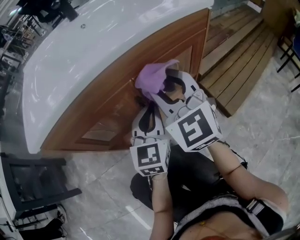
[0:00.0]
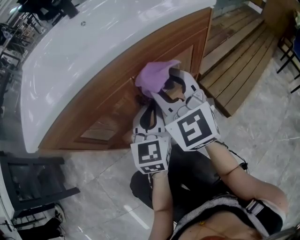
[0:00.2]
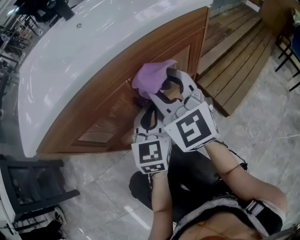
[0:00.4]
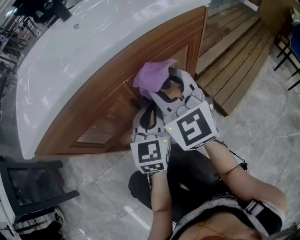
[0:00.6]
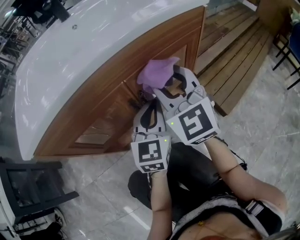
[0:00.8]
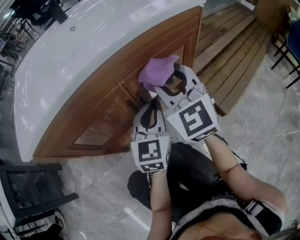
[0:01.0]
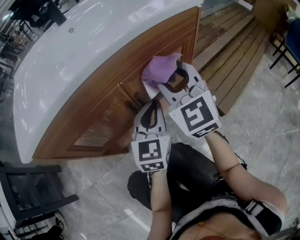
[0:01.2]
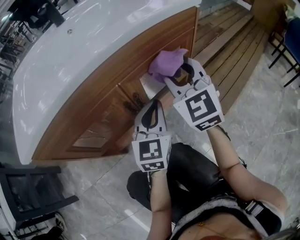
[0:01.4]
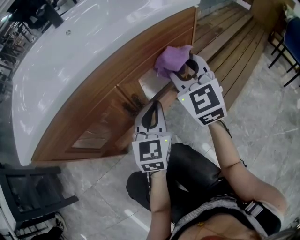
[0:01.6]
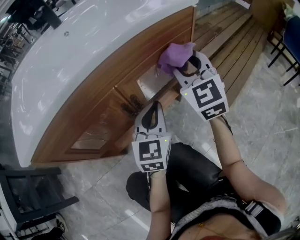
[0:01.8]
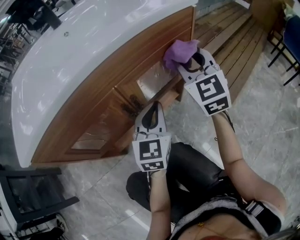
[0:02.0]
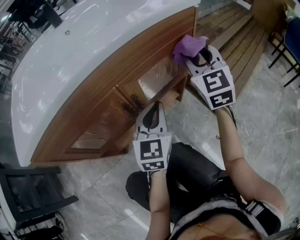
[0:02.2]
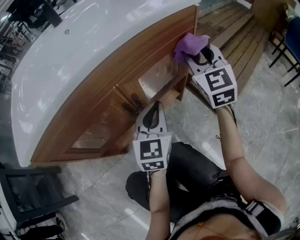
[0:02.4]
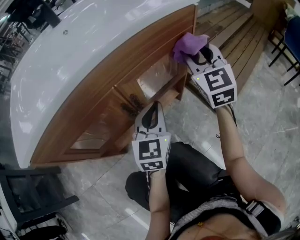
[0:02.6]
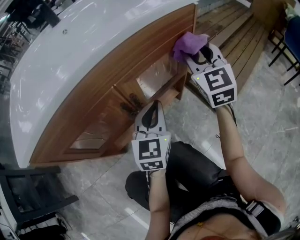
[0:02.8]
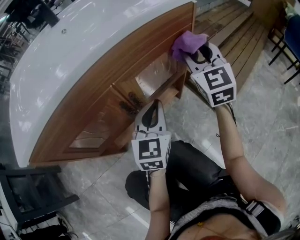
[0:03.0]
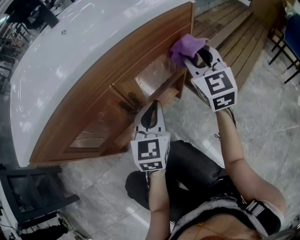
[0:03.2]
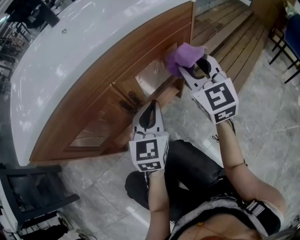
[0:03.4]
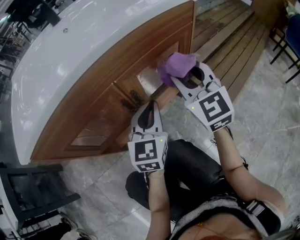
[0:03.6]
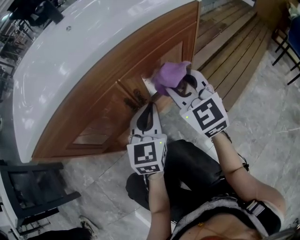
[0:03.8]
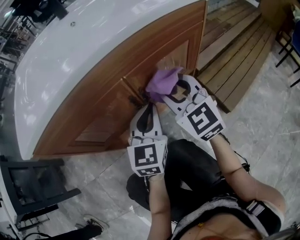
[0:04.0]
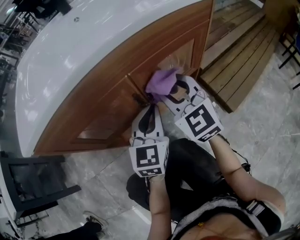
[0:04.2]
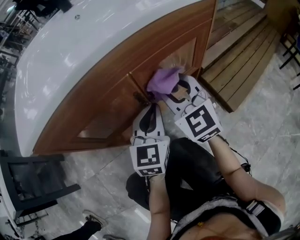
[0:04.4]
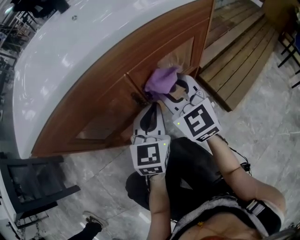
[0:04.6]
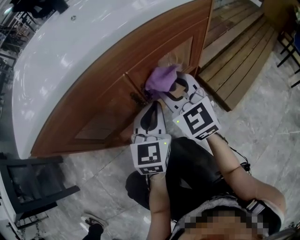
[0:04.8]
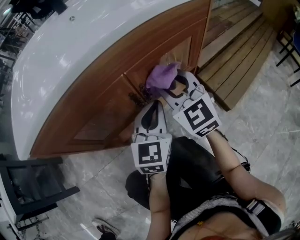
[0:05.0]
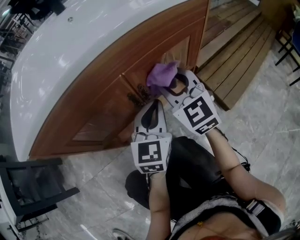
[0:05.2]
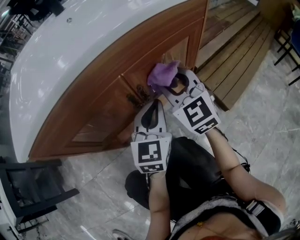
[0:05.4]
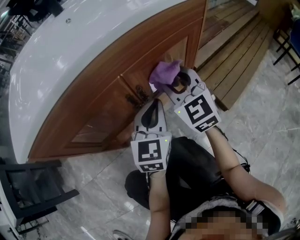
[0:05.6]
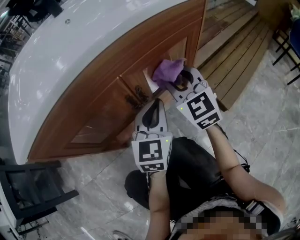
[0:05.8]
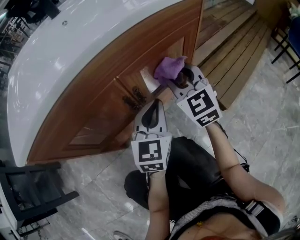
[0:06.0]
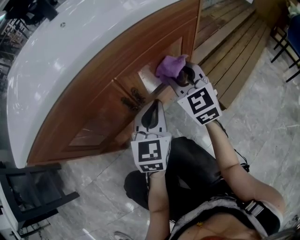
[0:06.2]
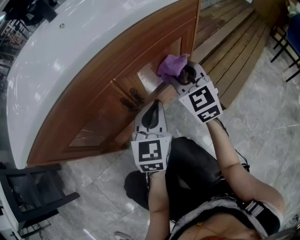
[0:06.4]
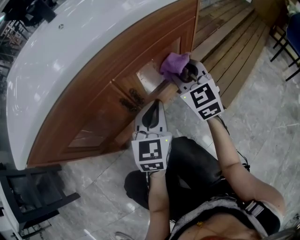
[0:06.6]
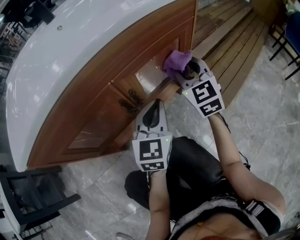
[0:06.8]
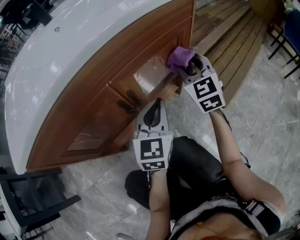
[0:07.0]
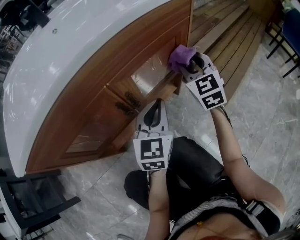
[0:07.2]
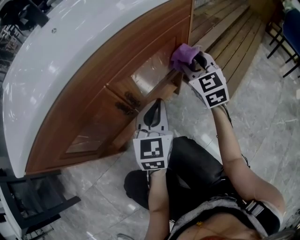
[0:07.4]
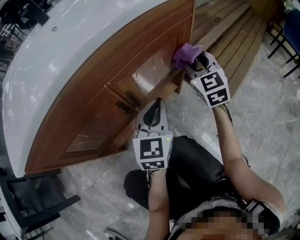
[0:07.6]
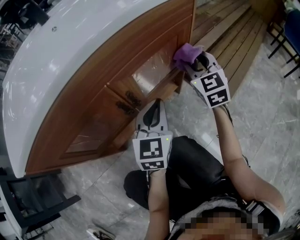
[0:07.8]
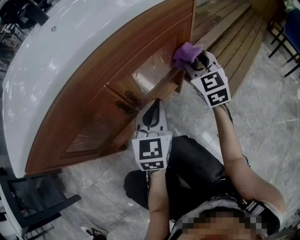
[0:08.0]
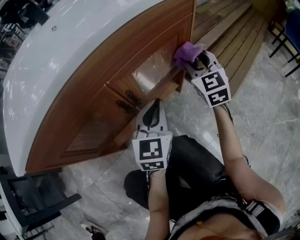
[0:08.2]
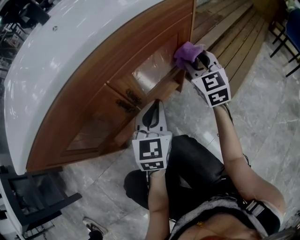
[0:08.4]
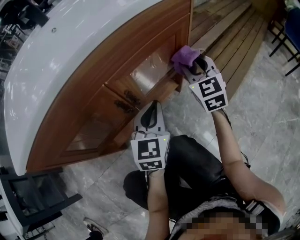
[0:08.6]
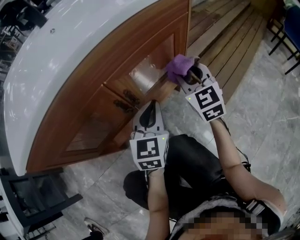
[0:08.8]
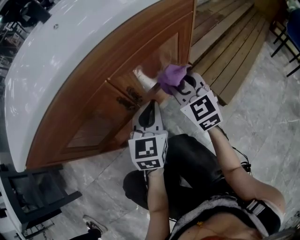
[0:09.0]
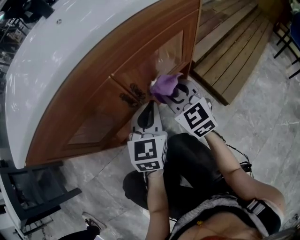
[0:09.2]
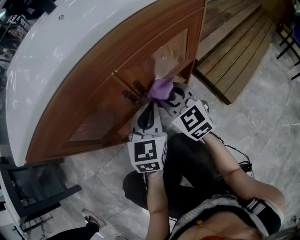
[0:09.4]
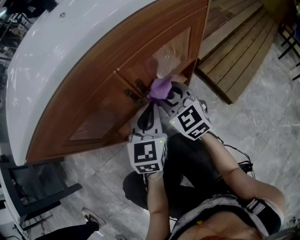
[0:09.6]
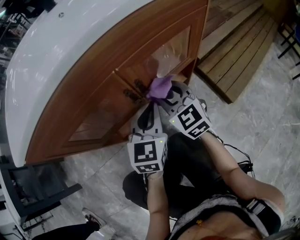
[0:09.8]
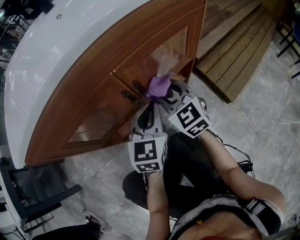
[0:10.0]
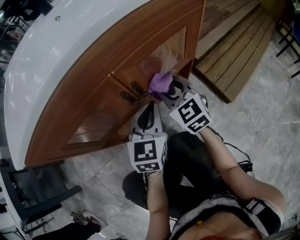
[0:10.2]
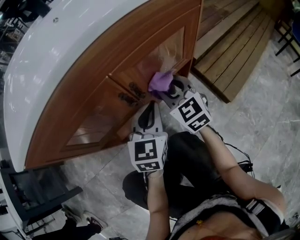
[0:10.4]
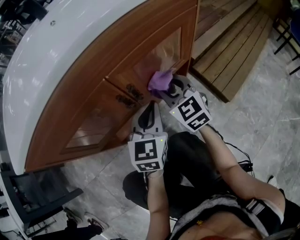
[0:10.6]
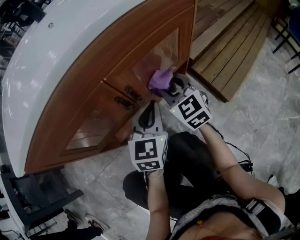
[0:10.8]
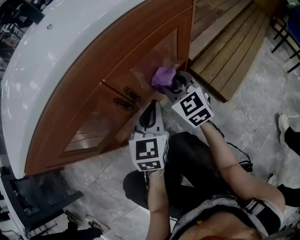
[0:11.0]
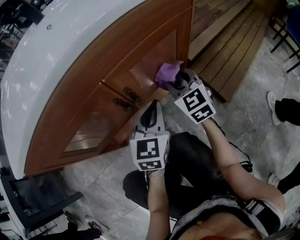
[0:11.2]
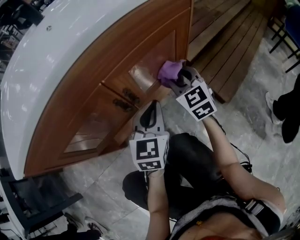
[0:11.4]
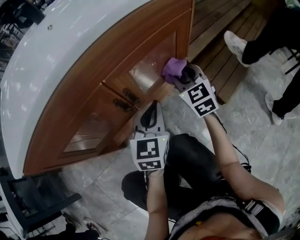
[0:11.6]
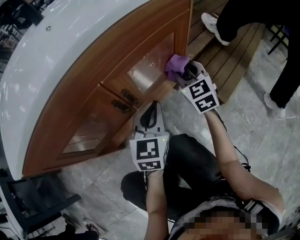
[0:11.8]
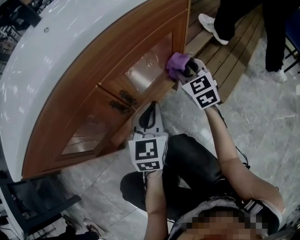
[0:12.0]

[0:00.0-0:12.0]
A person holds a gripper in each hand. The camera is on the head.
0:00.0 to 0:01.6: The left gripper travels to the right by approximately 5 cm; the right gripper heads to the right and forward, covering some 10 cm.
0:01.6 to 0:03.0: The right gripper moves to the right, approximately 5 cm.
0:03.0 to 0:04.4: The right gripper shifts about 20 cm to the left and backward, and swivels some 20 degrees; the left gripper shifts roughly 5 cm to the left.
0:04.4 to 0:06.0: The right gripper is displaced to the right by approximately 5 cm.
0:06.0 to 0:07.6: The right gripper travels to the right and forward by about 10 cm.
0:07.6 to 0:09.0: The right gripper moves backward and to the left, some 10 cm.
0:09.0 to 0:10.4: The right gripper travels to the left by roughly 5 cm.
0:10.4 to 0:12.0: The right gripper shifts about 15 cm to the right and forward.

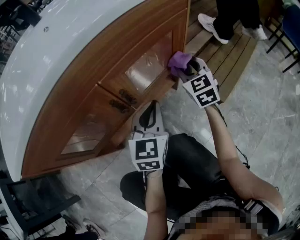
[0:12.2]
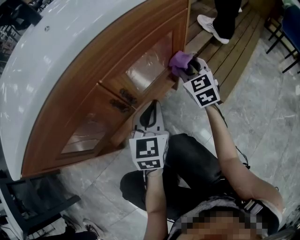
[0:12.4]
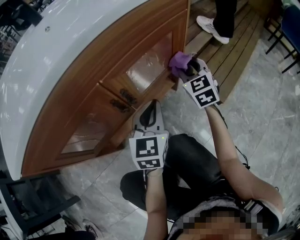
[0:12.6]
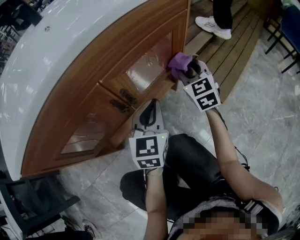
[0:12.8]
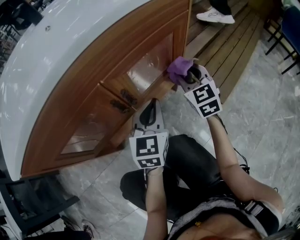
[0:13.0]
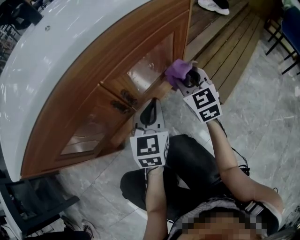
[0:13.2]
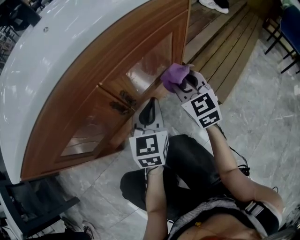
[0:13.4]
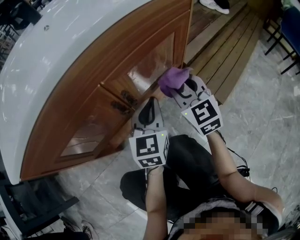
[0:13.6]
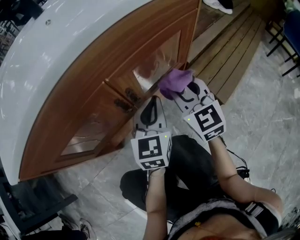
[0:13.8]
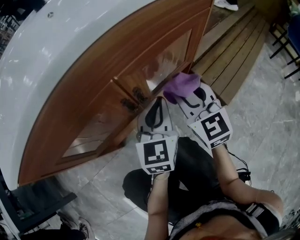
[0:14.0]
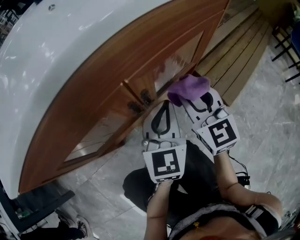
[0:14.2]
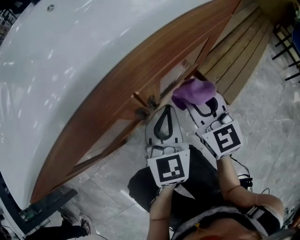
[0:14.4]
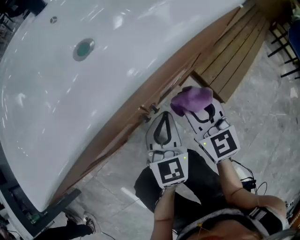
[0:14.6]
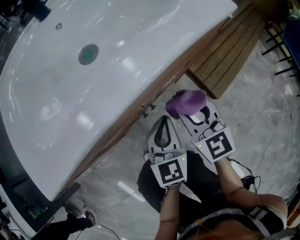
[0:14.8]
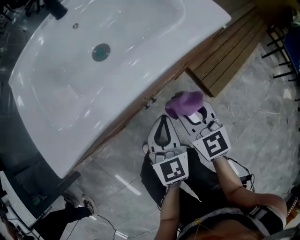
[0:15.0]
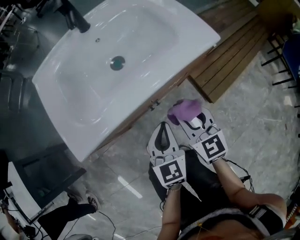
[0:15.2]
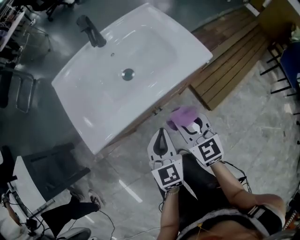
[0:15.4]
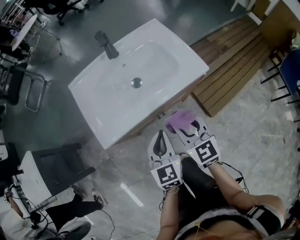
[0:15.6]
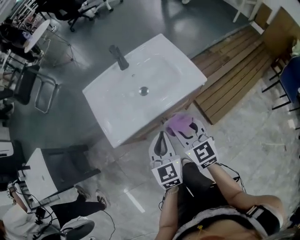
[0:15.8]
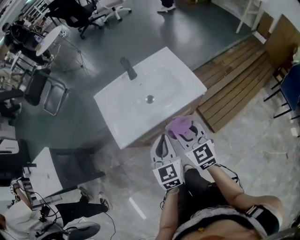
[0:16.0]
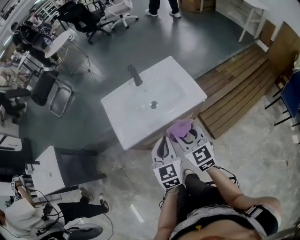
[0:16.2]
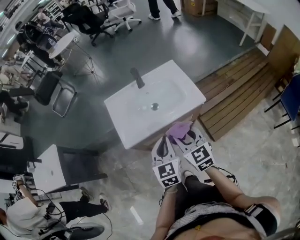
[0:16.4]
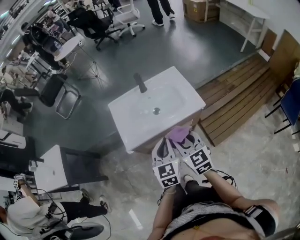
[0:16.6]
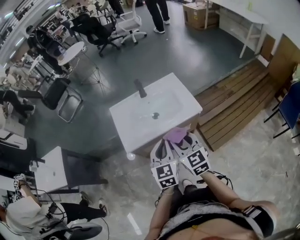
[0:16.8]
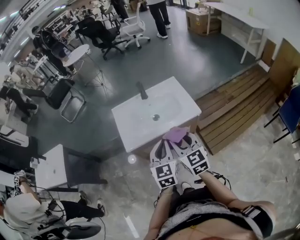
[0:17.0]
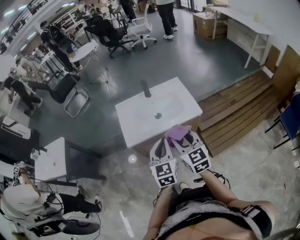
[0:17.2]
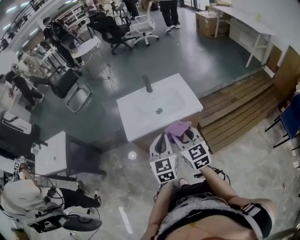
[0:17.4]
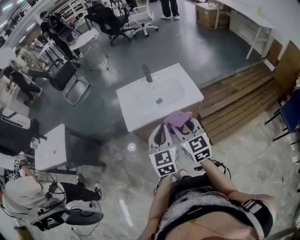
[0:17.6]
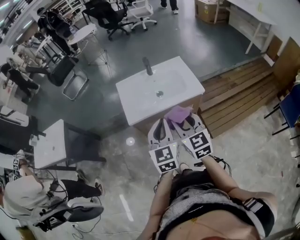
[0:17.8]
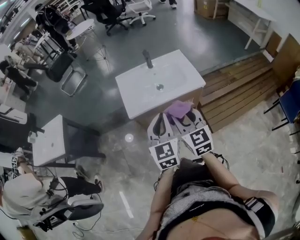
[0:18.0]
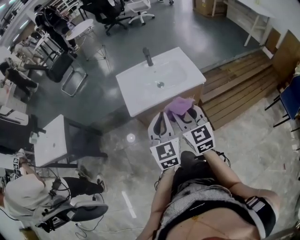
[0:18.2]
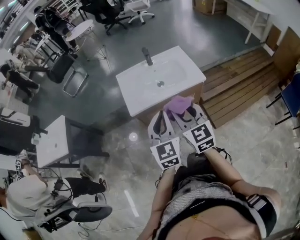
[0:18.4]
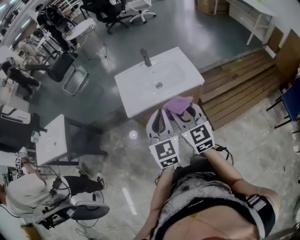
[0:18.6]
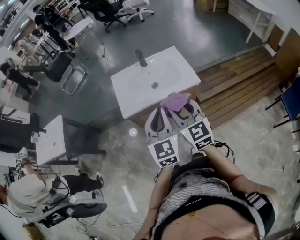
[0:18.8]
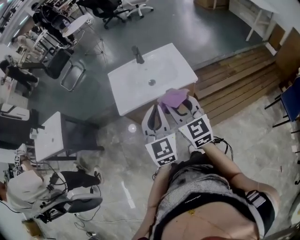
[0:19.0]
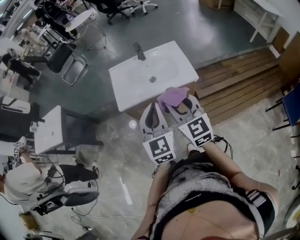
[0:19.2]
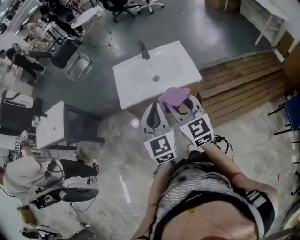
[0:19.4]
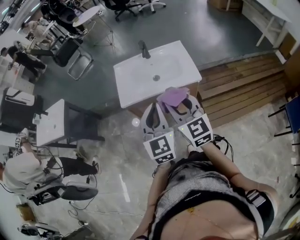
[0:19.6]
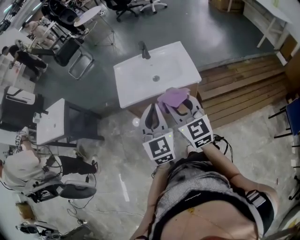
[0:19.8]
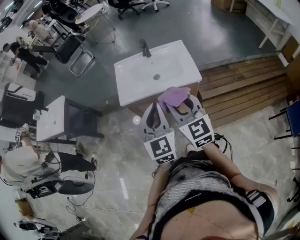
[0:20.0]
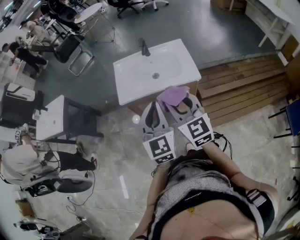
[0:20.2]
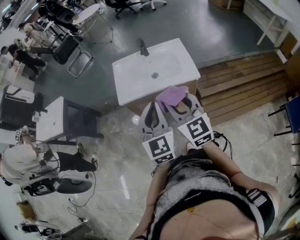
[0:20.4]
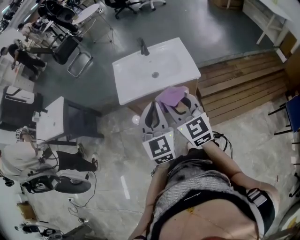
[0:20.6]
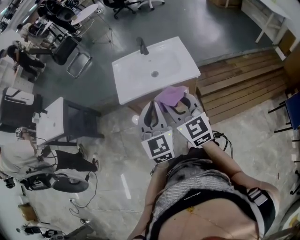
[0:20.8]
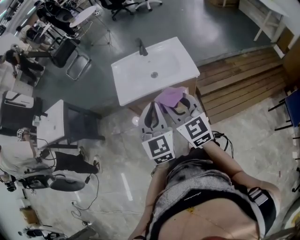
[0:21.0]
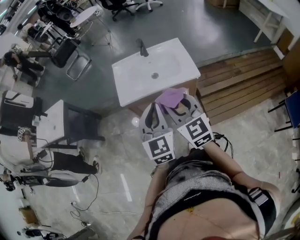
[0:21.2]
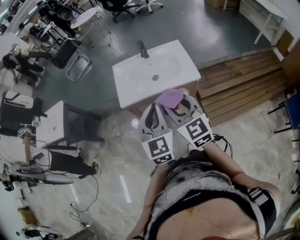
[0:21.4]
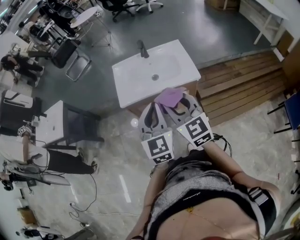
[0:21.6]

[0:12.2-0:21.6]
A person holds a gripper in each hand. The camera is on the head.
0:12.2 to 0:13.8: The right gripper heads backward and to the left, covering some 10 cm.
0:13.8 to 0:15.4: The two grippers go about 25 cm upward. The left gripper turns by roughly 20 degrees.
0:15.4 to 0:17.0: The grippers both shift upward by approximately 30 cm.
0:17.0 to 0:18.4: Both grippers move backward and to the left, some 10 cm.
0:18.4 to 0:20.0: The two grippers go some 10 cm to the right.
0:20.0 to 0:21.6: The grippers move only a little.

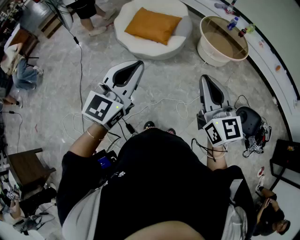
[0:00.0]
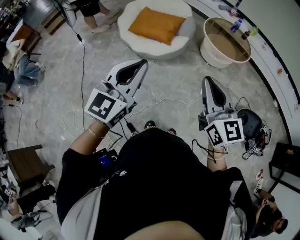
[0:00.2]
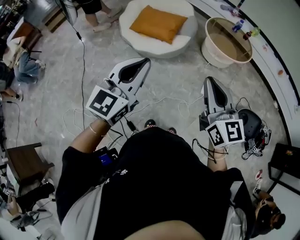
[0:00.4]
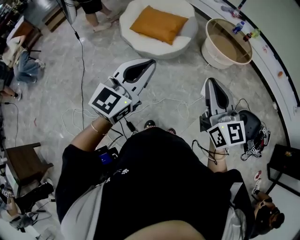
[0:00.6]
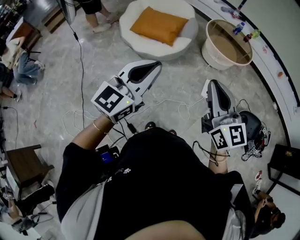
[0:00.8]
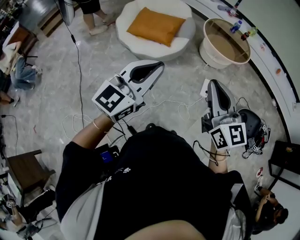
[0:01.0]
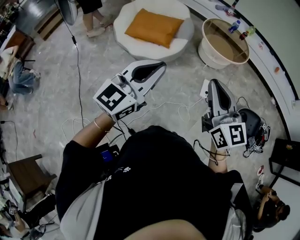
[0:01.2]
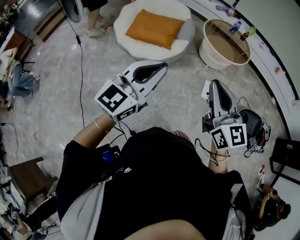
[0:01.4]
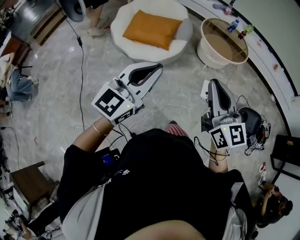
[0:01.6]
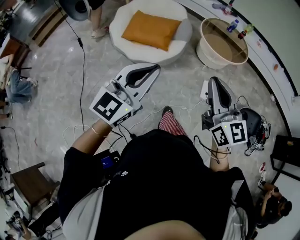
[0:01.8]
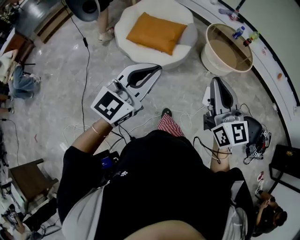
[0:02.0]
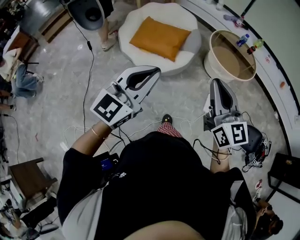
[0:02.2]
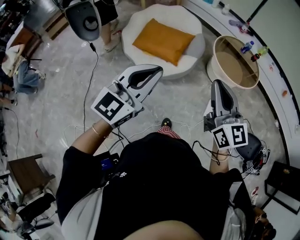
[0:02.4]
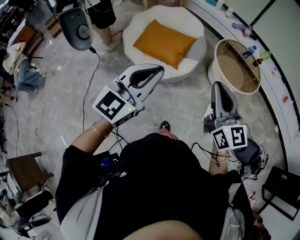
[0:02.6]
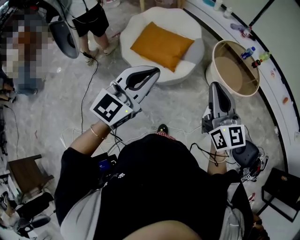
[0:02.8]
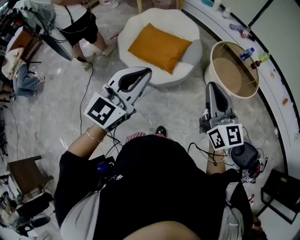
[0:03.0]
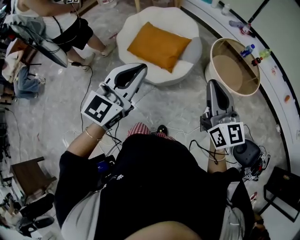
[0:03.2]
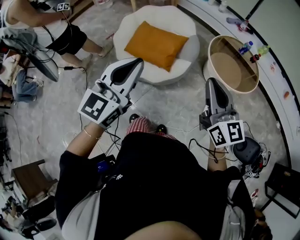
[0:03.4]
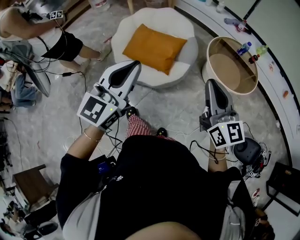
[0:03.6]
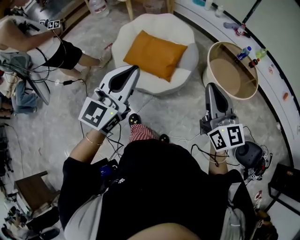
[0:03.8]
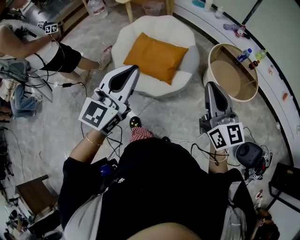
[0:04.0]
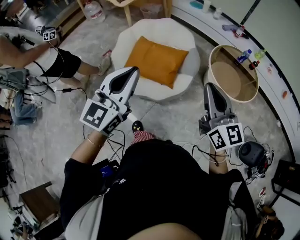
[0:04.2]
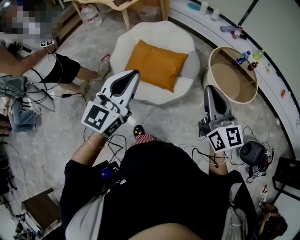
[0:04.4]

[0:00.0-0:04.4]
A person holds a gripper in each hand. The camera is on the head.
0:00.0 to 0:01.4: The right gripper travels to the left by approximately 5 cm; the left gripper ends up roughly 5 cm from where it was.
0:01.4 to 0:03.0: The grippers both shift forward by about 25 cm.
0:03.0 to 0:04.4: Both grippers travel together forward and to the left, roughly 15 cm.
